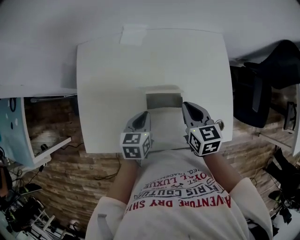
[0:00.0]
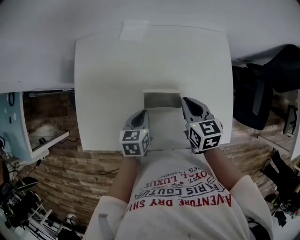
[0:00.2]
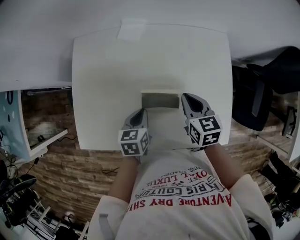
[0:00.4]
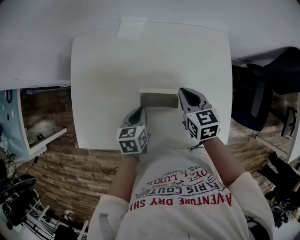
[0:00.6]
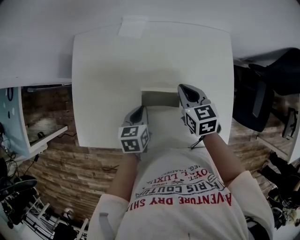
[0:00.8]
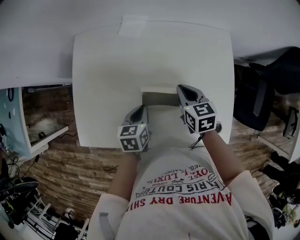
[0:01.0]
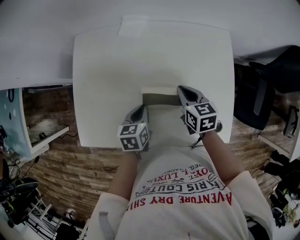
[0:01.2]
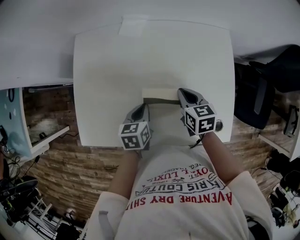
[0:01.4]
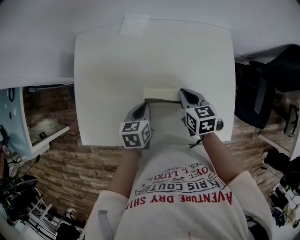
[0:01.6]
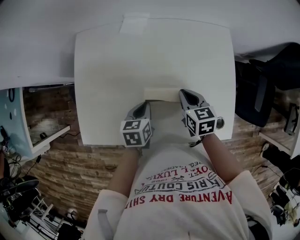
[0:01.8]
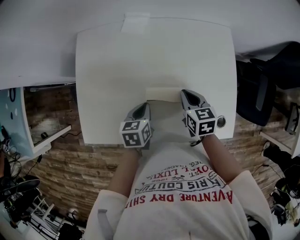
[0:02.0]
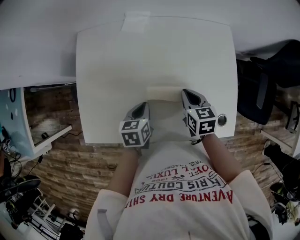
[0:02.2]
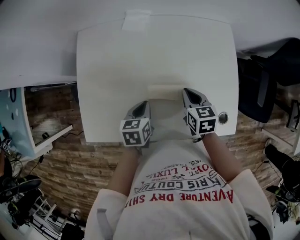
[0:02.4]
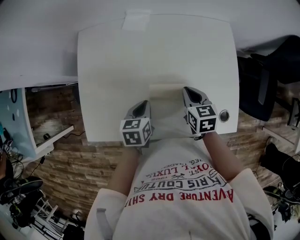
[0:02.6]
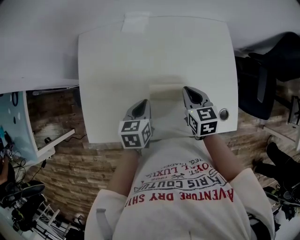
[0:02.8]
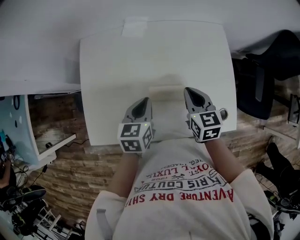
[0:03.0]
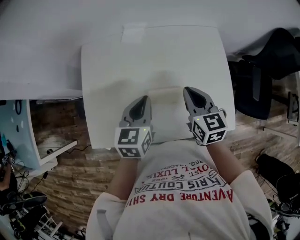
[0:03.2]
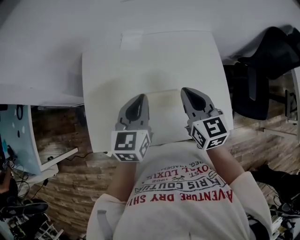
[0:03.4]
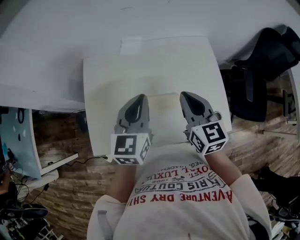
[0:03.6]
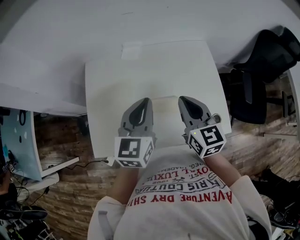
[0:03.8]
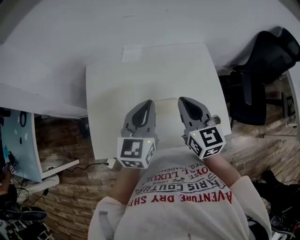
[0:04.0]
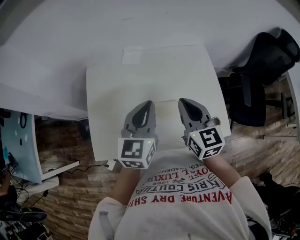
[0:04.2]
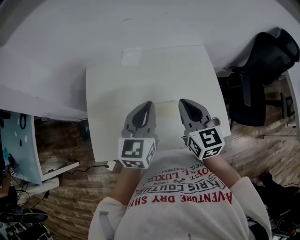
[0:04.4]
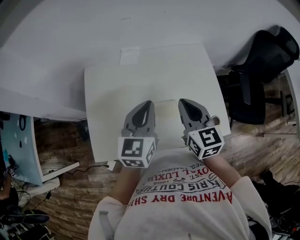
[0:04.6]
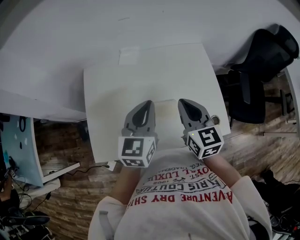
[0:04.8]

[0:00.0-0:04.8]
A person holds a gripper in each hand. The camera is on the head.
0:00.0 to 0:01.6: The right gripper travels downward by some 5 cm.
0:01.6 to 0:03.2: The two grippers go about 15 cm upward. The left gripper rotates about 20 degrees.
0:03.2 to 0:04.8: The grippers both shift upward by some 10 cm.

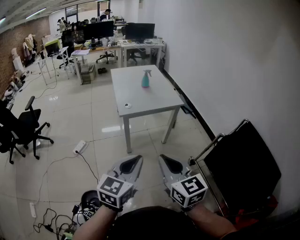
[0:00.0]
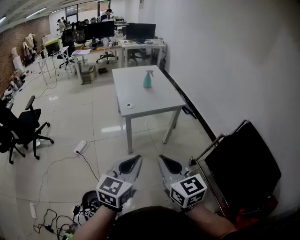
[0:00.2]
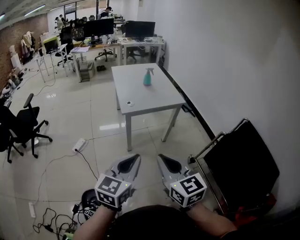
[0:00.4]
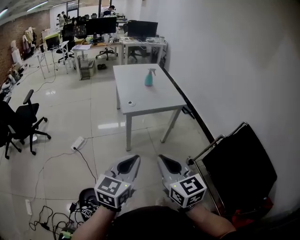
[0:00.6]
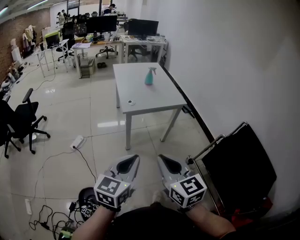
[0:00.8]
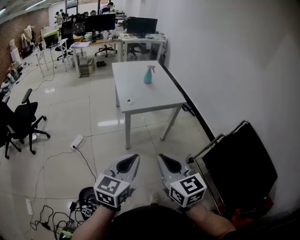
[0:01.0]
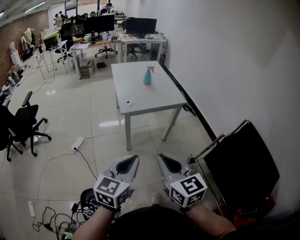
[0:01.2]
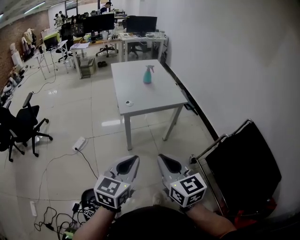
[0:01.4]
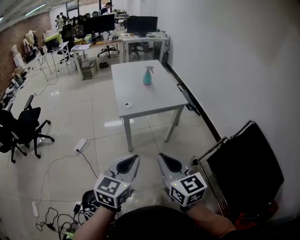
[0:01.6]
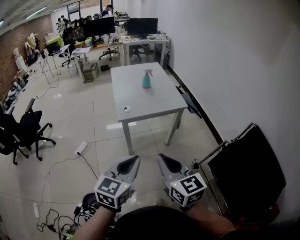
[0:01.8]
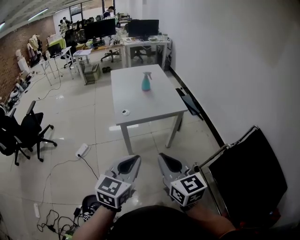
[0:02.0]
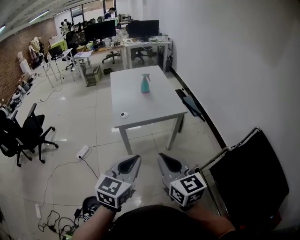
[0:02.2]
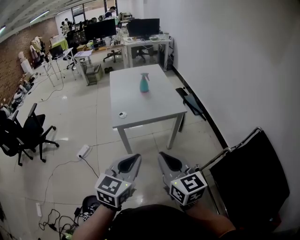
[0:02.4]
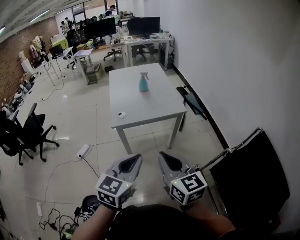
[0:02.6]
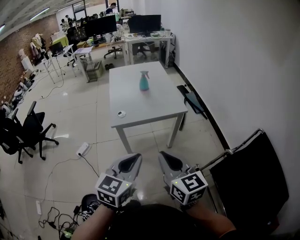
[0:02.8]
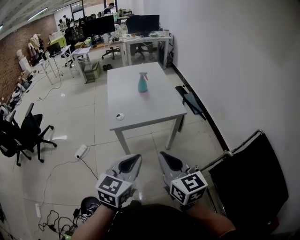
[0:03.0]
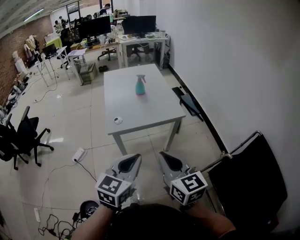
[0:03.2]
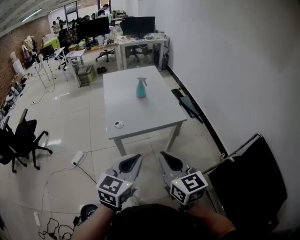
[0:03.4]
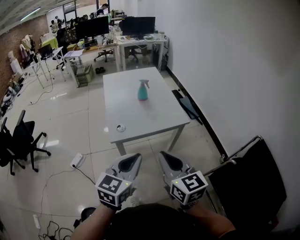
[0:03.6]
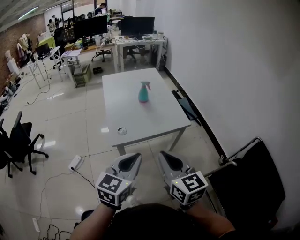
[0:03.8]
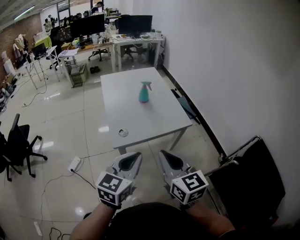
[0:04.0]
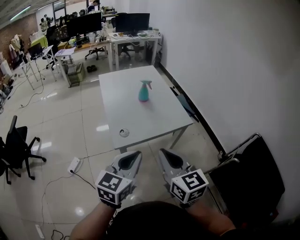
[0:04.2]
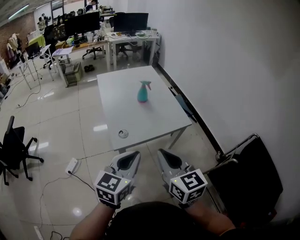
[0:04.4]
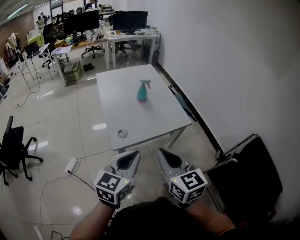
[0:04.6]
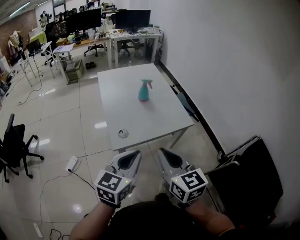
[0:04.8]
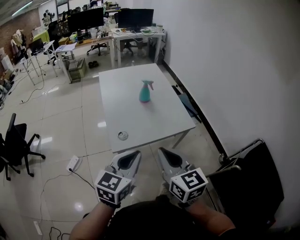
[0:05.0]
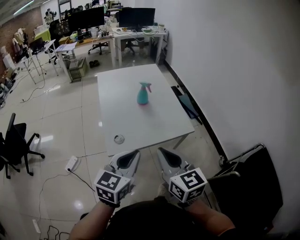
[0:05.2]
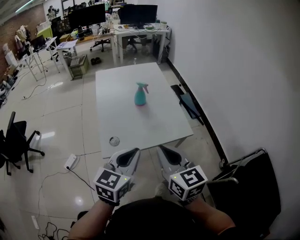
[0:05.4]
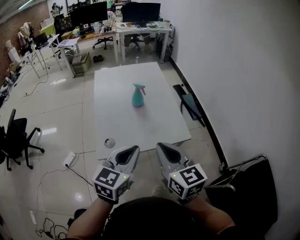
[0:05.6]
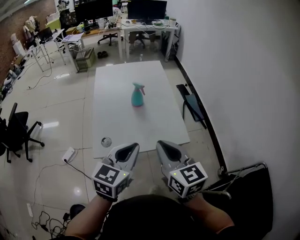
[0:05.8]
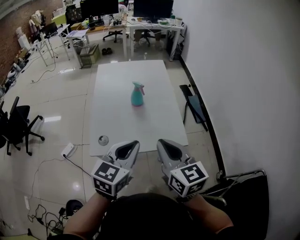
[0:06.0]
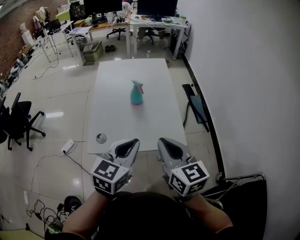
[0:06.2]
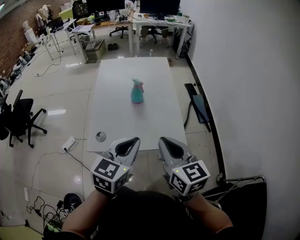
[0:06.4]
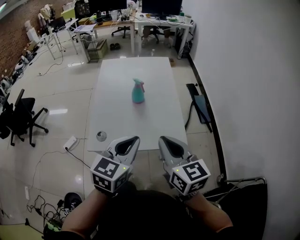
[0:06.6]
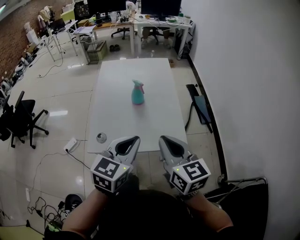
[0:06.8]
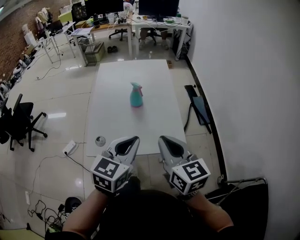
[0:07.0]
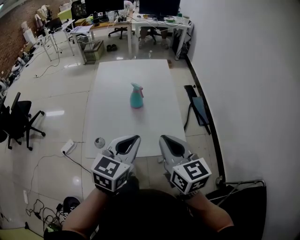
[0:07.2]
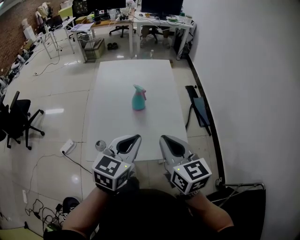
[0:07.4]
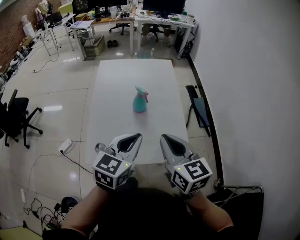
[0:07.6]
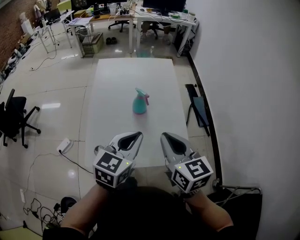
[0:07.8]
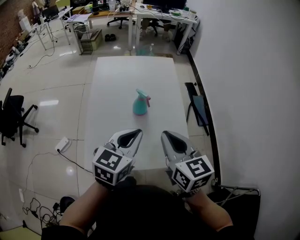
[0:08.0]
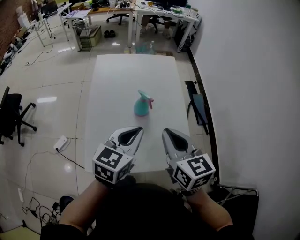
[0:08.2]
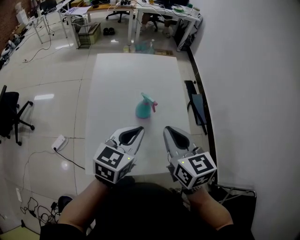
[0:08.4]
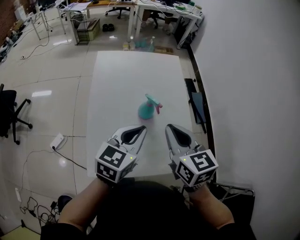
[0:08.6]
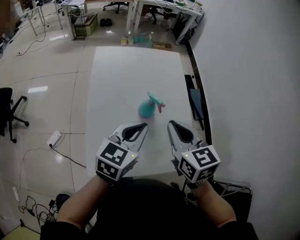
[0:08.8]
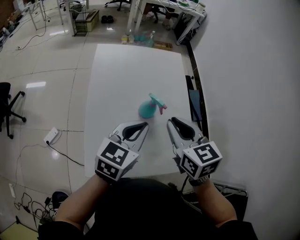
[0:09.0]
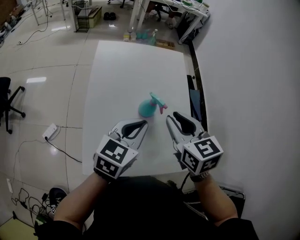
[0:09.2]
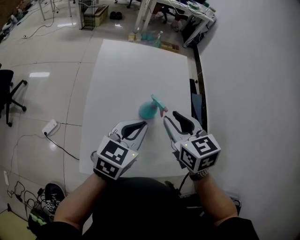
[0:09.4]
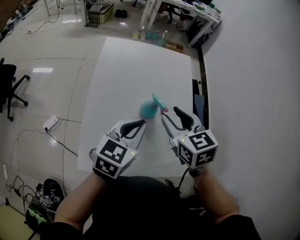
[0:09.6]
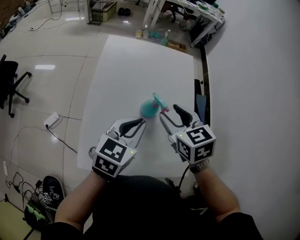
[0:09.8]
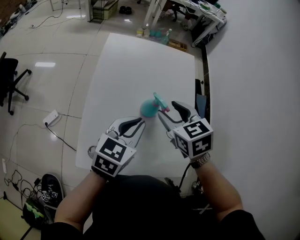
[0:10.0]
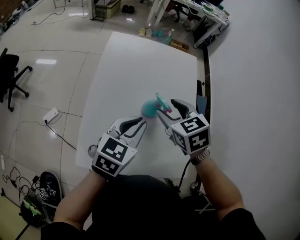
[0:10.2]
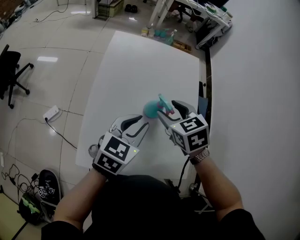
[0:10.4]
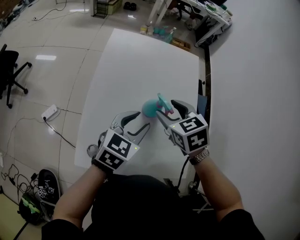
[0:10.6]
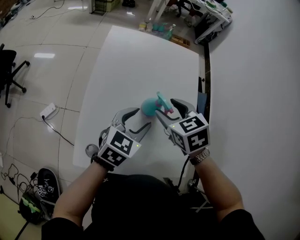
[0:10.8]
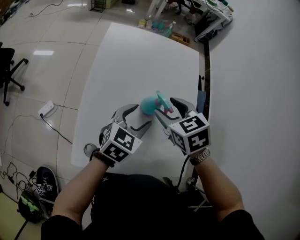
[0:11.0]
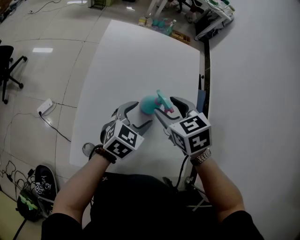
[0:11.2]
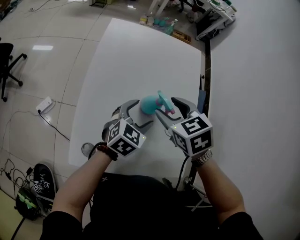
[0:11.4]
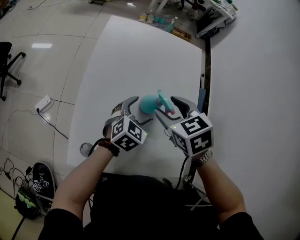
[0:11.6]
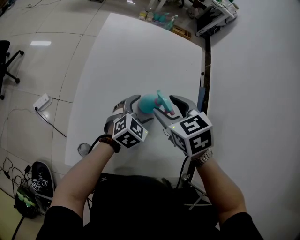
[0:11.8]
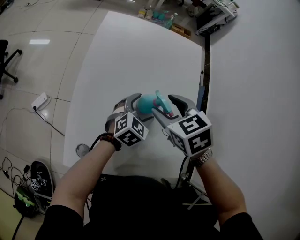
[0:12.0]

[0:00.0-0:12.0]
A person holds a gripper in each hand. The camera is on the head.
0:00.0 to 0:01.6: The two grippers go about 5 cm forward.
0:01.6 to 0:03.0: The two grippers go approximately 15 cm forward and to the right.
0:03.0 to 0:04.4: The two grippers go about 15 cm forward and to the left.
0:04.4 to 0:06.0: Both grippers travel together forward and to the right, roughly 20 cm.
0:06.0 to 0:07.6: The grippers both shift forward by some 10 cm.
0:07.6 to 0:09.0: The grippers both shift forward and to the left by approximately 15 cm.
0:09.0 to 0:10.4: The right gripper goes about 10 cm downward and forward, changes its angle by about 30 degrees, and opens up.
0:10.4 to 0:12.0: The left gripper heads downward, forward and to the right, covering roughly 20 cm, and opens.

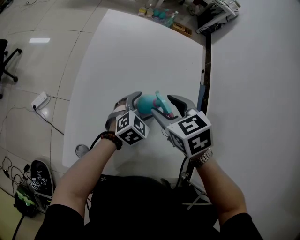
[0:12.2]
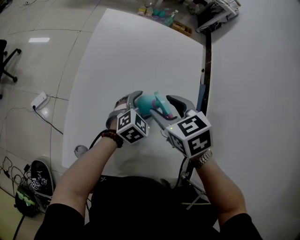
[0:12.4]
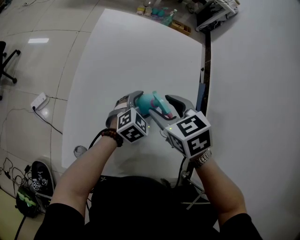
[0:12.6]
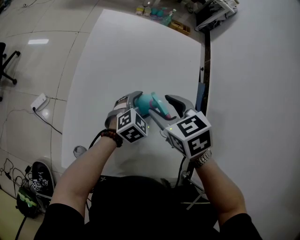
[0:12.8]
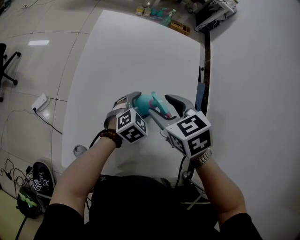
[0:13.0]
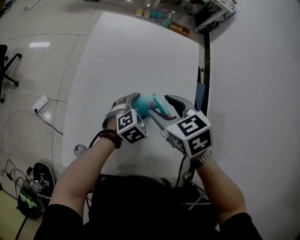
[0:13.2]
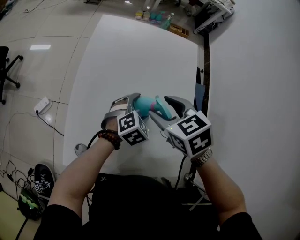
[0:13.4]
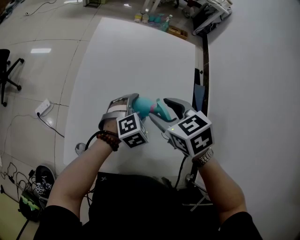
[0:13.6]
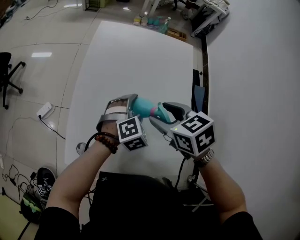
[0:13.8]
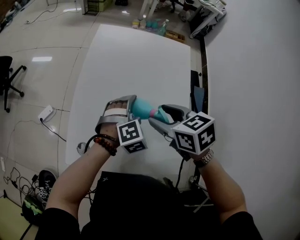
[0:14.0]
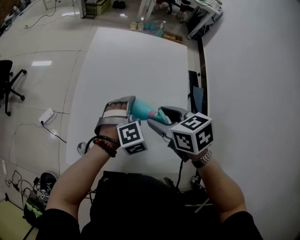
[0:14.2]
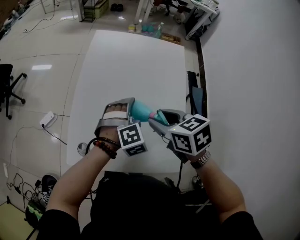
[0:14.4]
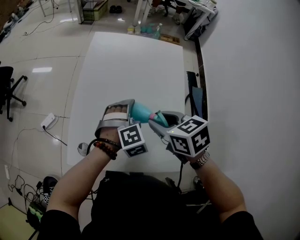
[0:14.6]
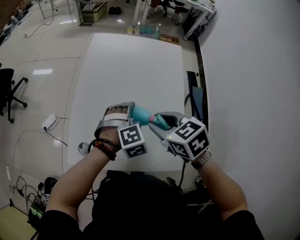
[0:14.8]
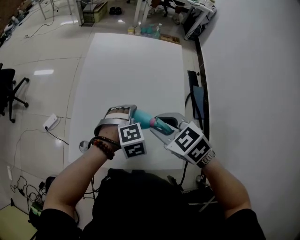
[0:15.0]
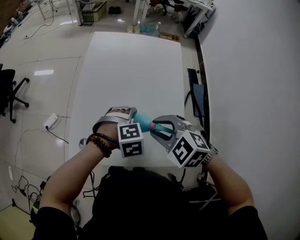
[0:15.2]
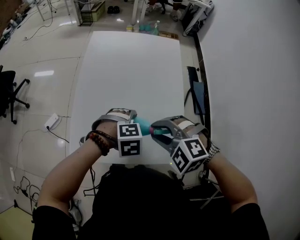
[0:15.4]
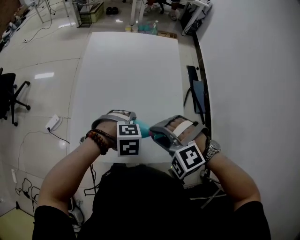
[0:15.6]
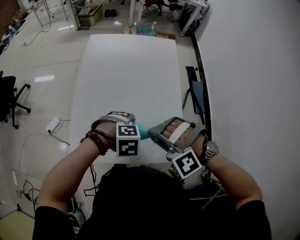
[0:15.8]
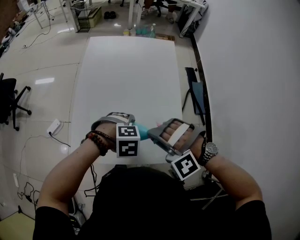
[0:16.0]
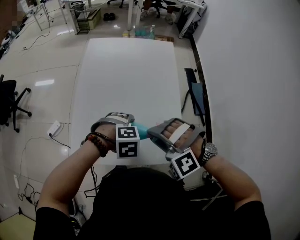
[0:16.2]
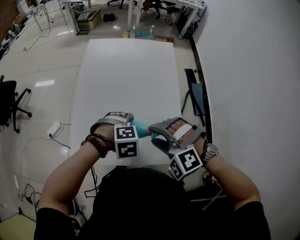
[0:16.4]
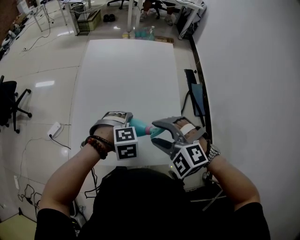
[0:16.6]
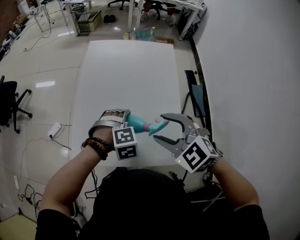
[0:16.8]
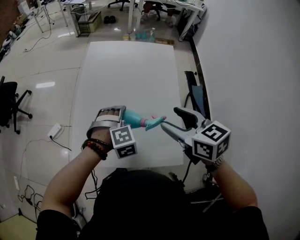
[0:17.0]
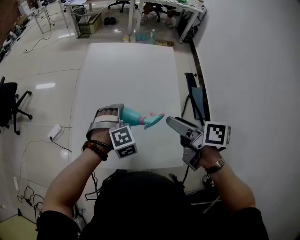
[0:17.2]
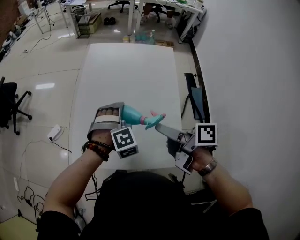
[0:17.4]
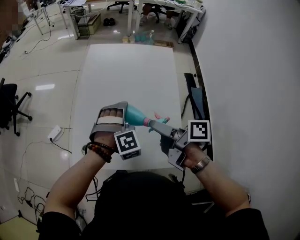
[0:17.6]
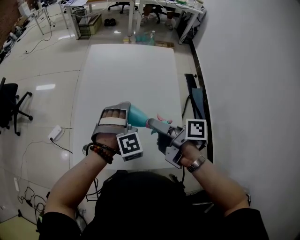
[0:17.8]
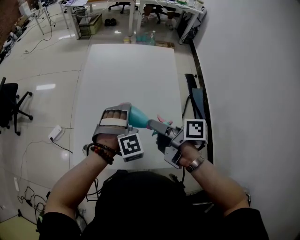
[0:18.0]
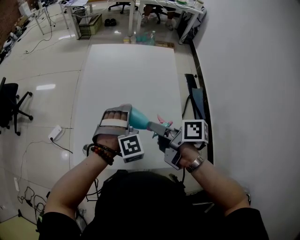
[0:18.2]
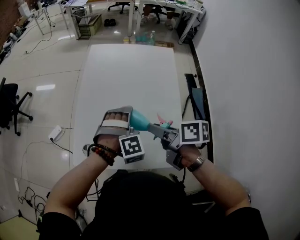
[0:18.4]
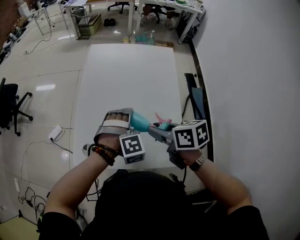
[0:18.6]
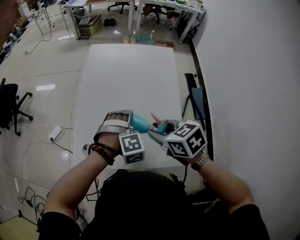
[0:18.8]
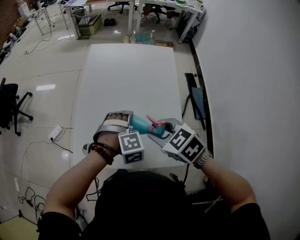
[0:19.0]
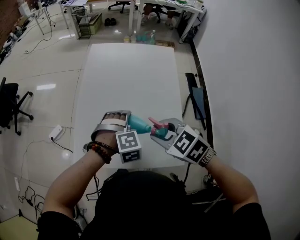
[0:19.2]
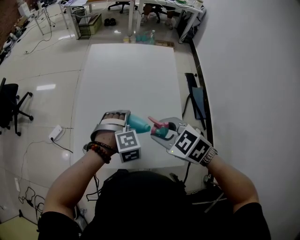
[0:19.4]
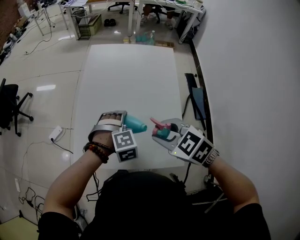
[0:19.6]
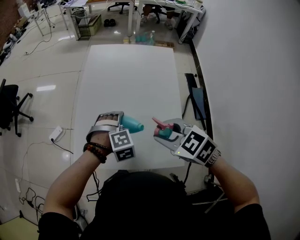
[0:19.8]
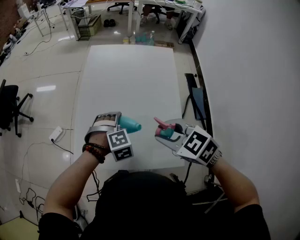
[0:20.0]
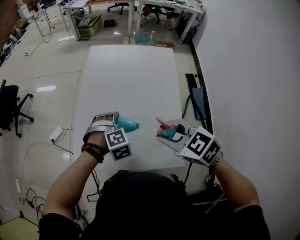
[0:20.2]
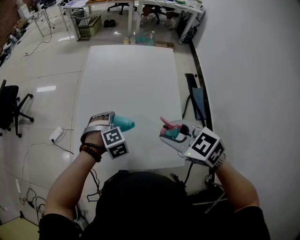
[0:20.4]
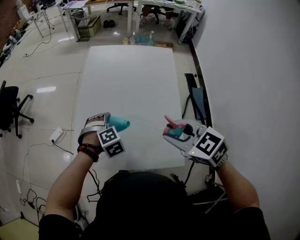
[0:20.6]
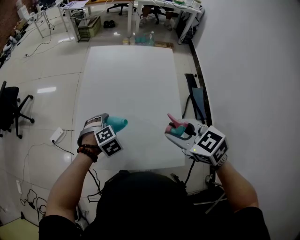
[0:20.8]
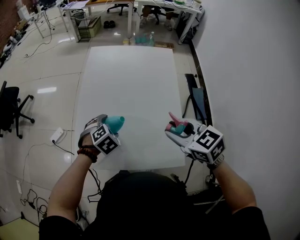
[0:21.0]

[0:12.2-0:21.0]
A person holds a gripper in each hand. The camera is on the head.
0:12.2 to 0:13.6: The left gripper swivels approximately 20 degrees.
0:13.6 to 0:15.2: Both grippers move backward, roughly 10 cm. The left gripper changes its angle by some 30 degrees; the right gripper turns by approximately 30 degrees, and closes its fingers.
0:15.2 to 0:16.6: The right gripper swivels roughly 20 degrees, and opens up.
0:16.6 to 0:18.0: The two grippers go approximately 5 cm forward. The left gripper turns by about 30 degrees, while the right gripper travels to the right and back again, approximately 10 cm each way, and rolls clockwise, seen from behind, by roughly 120 degrees.
0:18.0 to 0:19.6: The left gripper ends up some 5 cm from where it was, and turns by approximately 20 degrees. The right gripper rolls counterclockwise, seen from behind, by approximately 80 degrees.
0:19.6 to 0:21.0: The right gripper travels to the right by approximately 5 cm. The left gripper goes approximately 5 cm to the left, and swivels about 30 degrees.
